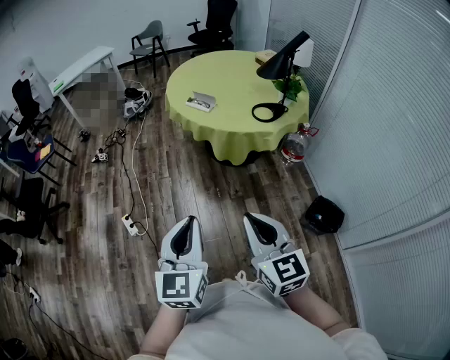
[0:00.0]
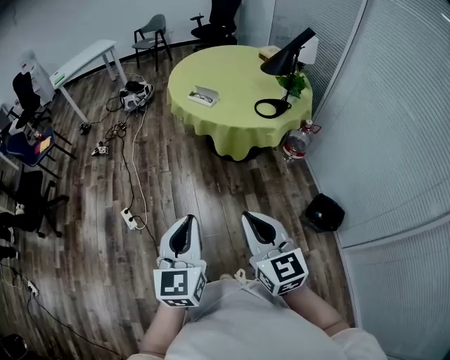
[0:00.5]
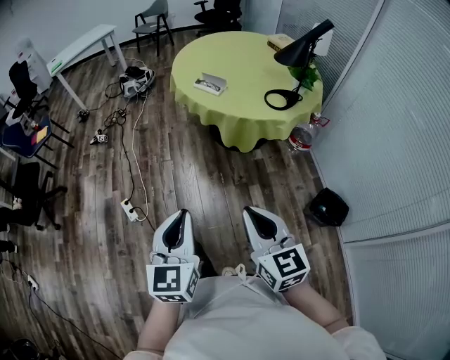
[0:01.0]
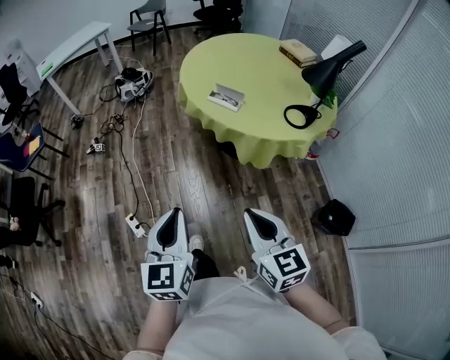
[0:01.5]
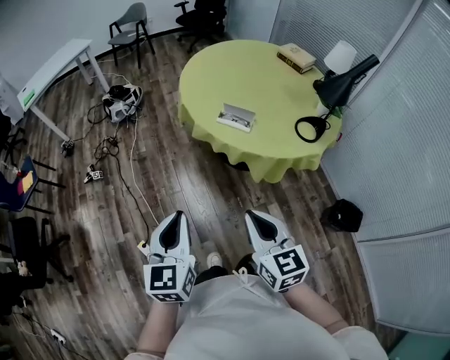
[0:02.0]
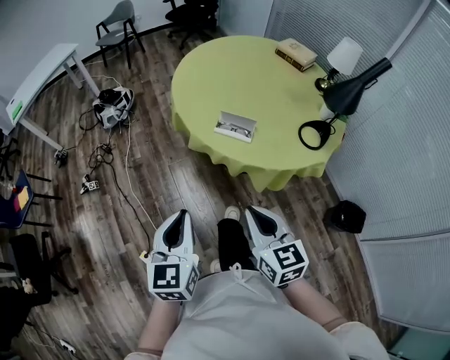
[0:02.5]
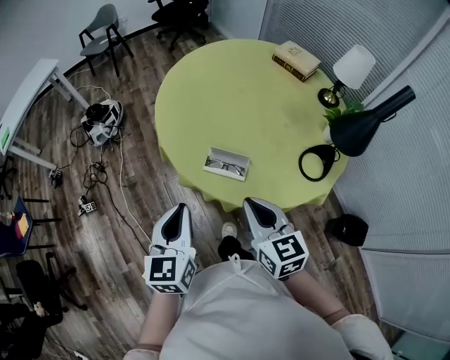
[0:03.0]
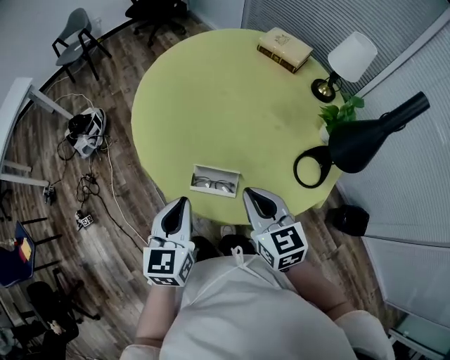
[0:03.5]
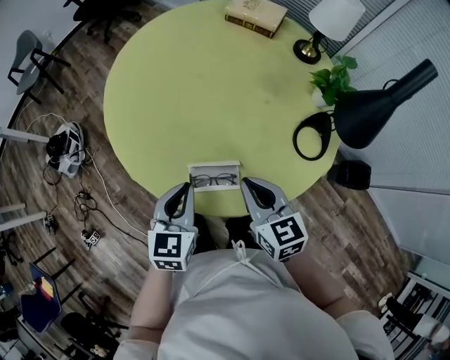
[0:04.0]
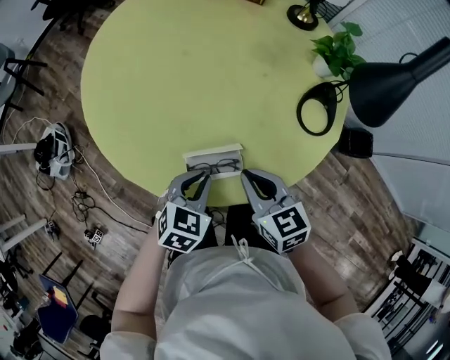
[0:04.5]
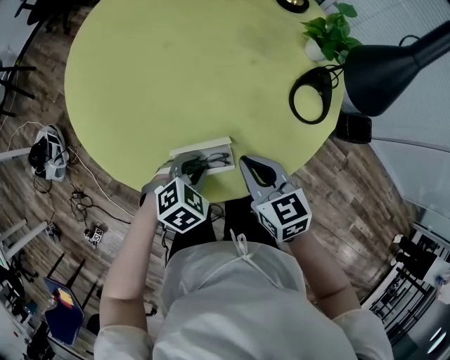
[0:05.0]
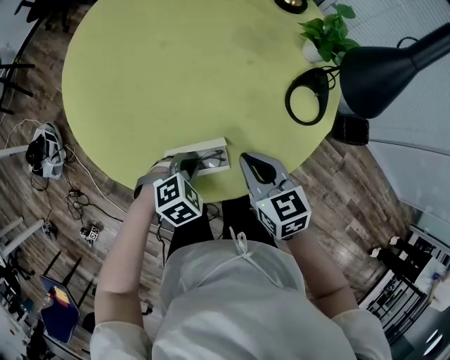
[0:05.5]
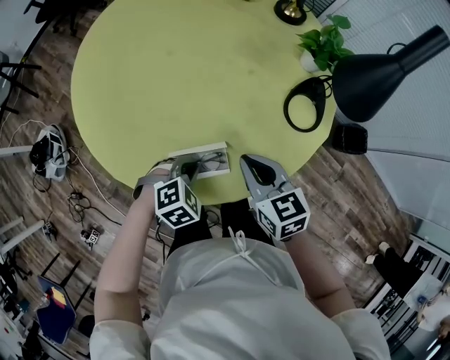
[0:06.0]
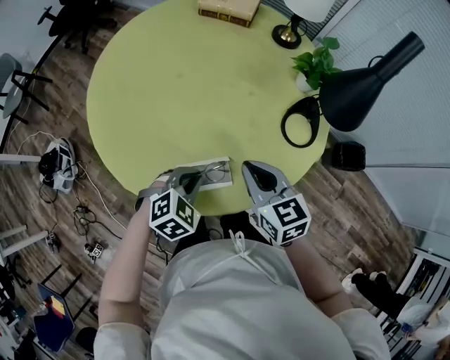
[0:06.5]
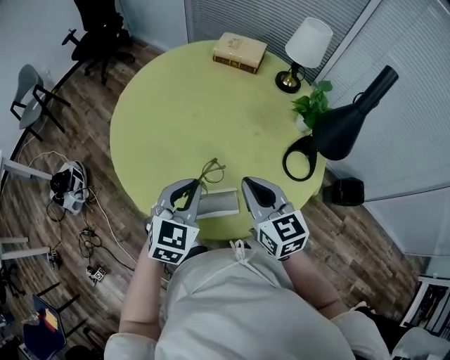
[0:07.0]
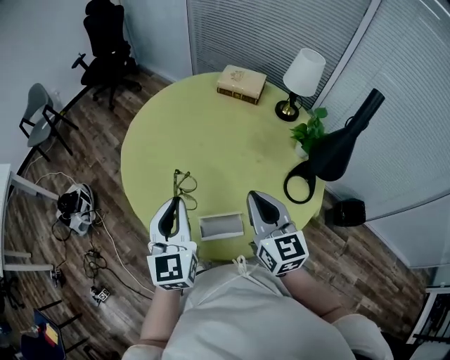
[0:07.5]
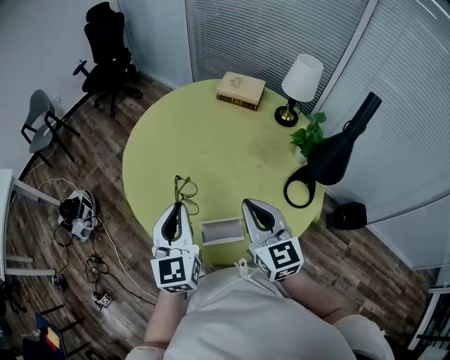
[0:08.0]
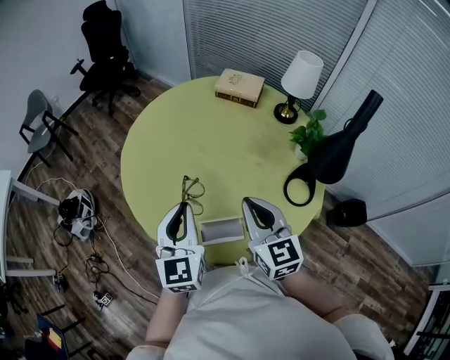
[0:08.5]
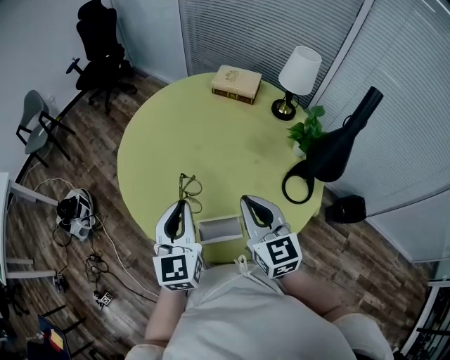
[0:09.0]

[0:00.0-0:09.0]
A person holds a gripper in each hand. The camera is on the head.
0:00.0 to 0:02.0: The two grippers travel together, forward and to the left, roughly 50 cm.
0:02.0 to 0:04.5: The two grippers travel together, about 50 cm. The right gripper turns by roughly 30 degrees; the left gripper angles its fingers downward, by some 30 degrees.
0:04.5 to 0:07.0: Both grippers move upward, approximately 15 cm. The left gripper turns by approximately 20 degrees.
0:07.0 to 0:09.0: Both grippers travel together upward, about 5 cm. The left gripper turns by some 30 degrees.

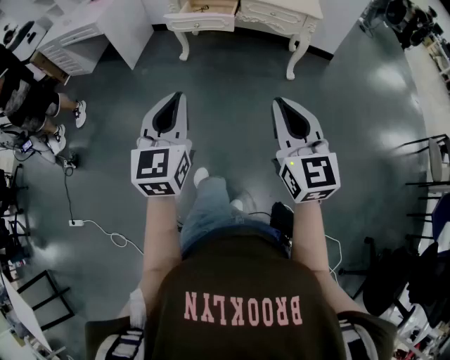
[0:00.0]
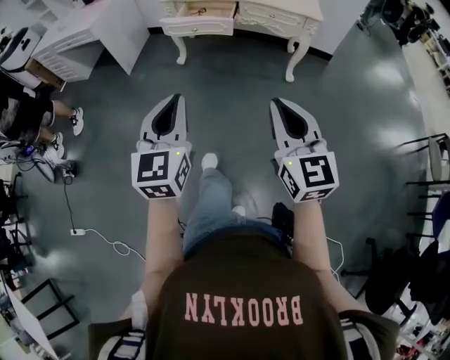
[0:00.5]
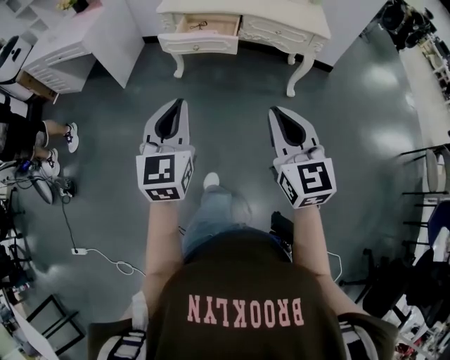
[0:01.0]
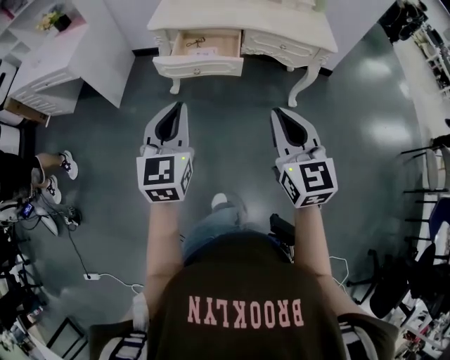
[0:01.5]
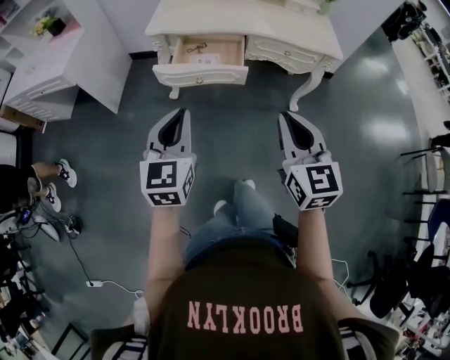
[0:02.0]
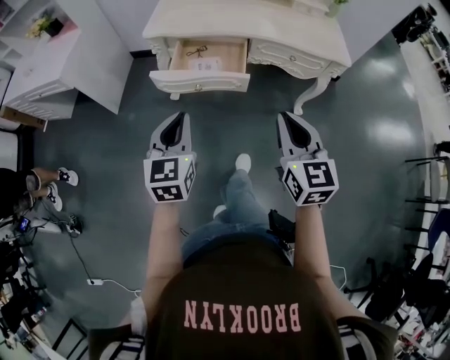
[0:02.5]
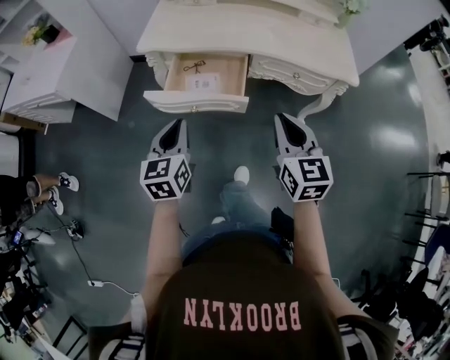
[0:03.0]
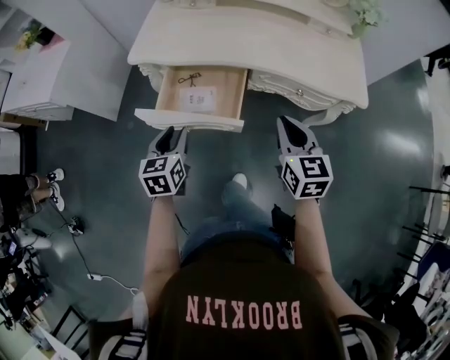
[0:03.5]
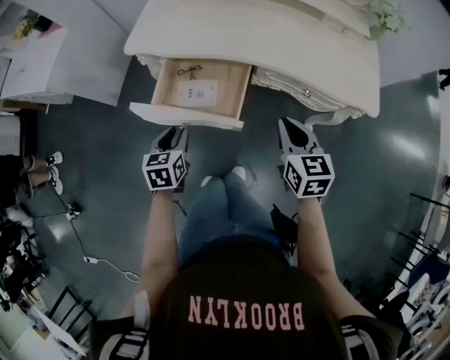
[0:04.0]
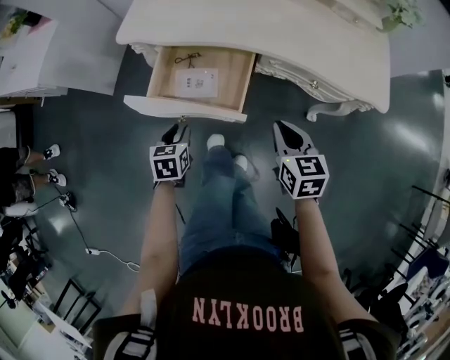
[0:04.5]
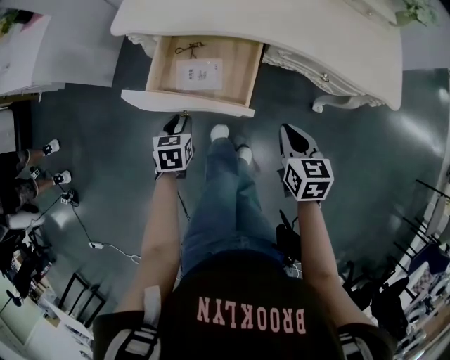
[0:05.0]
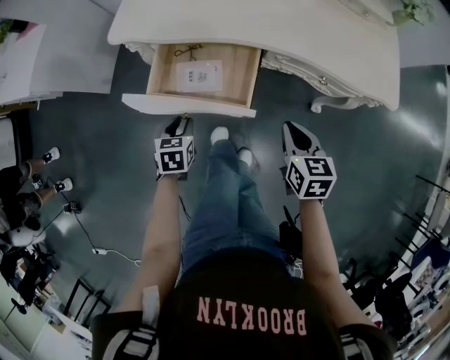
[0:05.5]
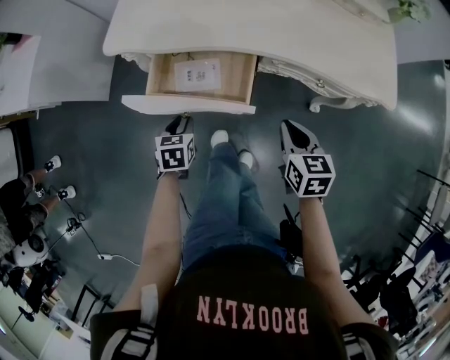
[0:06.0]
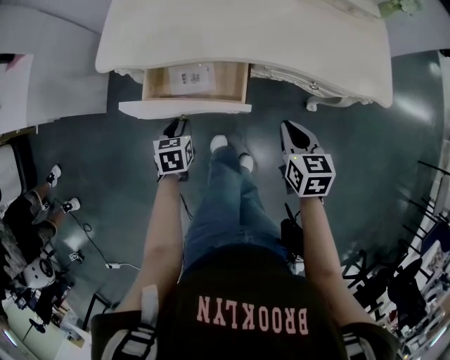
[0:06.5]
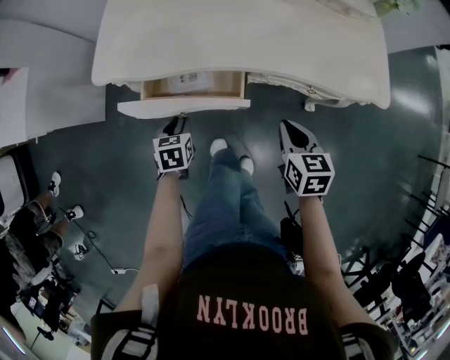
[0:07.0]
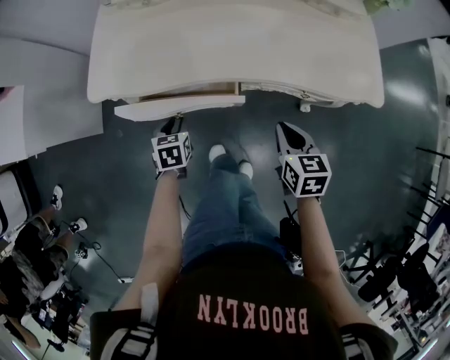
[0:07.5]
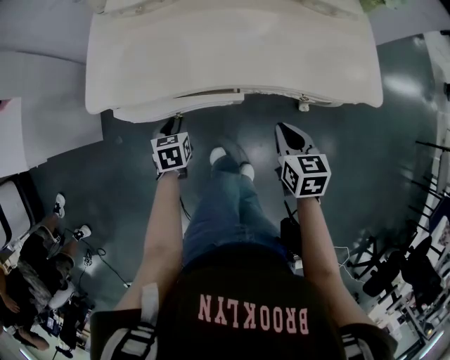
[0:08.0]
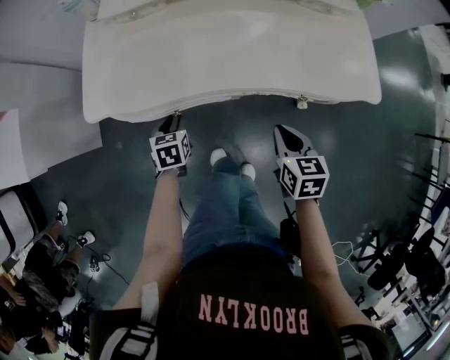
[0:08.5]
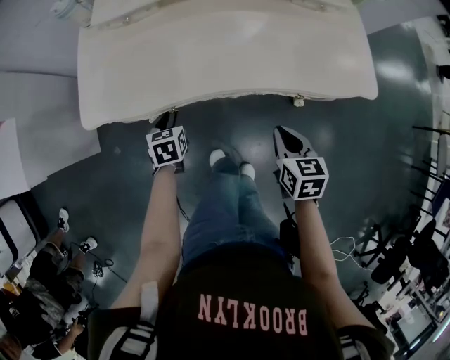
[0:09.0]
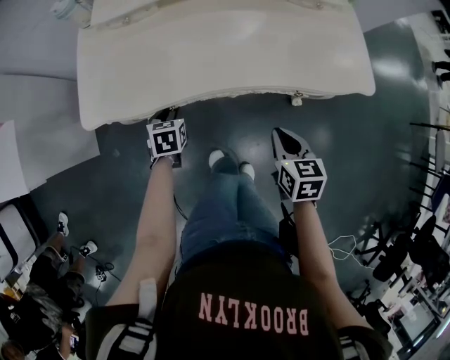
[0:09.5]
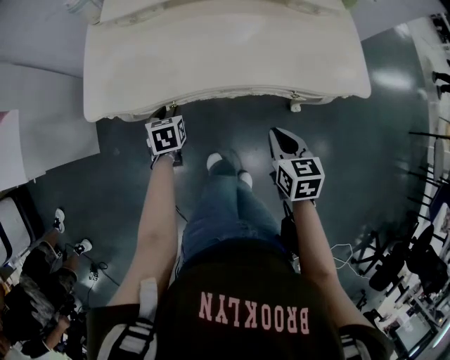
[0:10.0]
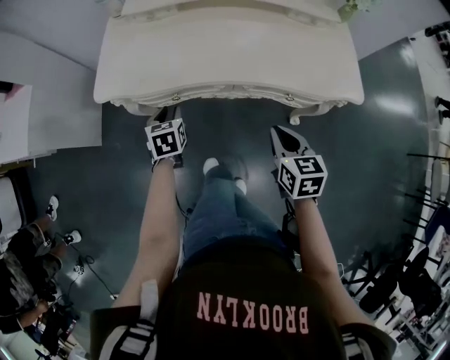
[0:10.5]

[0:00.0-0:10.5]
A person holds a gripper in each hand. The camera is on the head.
0:00.0 to 0:02.0: The pair of grippers is taken forward, approximately 40 cm.
0:02.0 to 0:04.0: Both grippers travel together forward and downward, approximately 35 cm. The left gripper tips its fingers downward by roughly 30 degrees, and opens up. The right gripper swivels about 20 degrees.
0:04.0 to 0:06.5: The right gripper heads downward, covering some 10 cm; the left gripper moves downward and forward, roughly 15 cm.
0:06.5 to 0:08.5: The right gripper is displaced forward by approximately 5 cm; the left gripper heads forward, covering about 15 cm.
0:08.5 to 0:10.5: Both grippers move upward, roughly 5 cm.

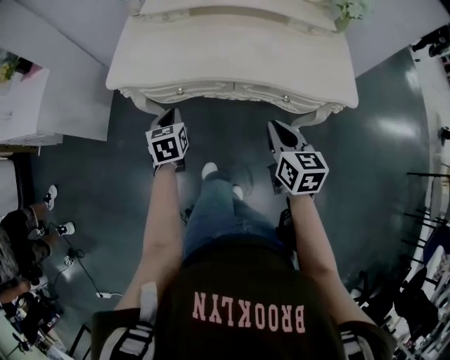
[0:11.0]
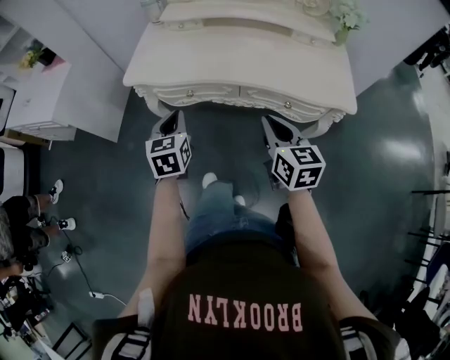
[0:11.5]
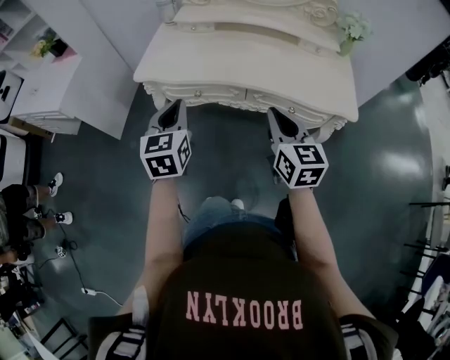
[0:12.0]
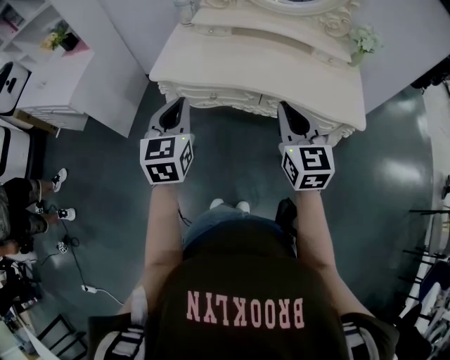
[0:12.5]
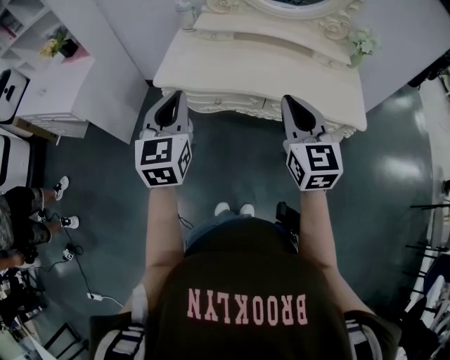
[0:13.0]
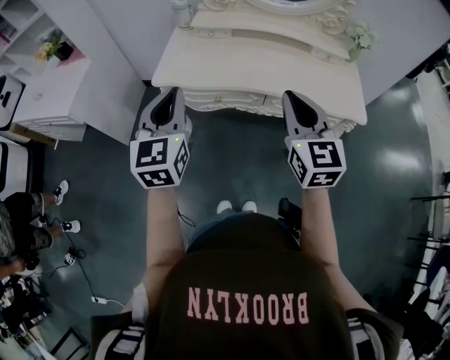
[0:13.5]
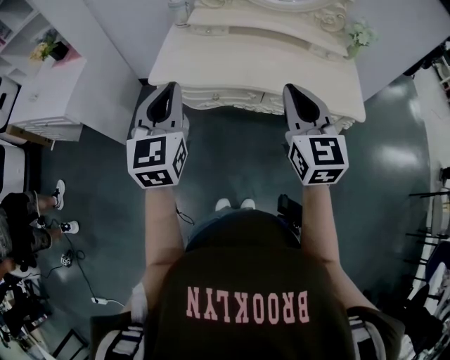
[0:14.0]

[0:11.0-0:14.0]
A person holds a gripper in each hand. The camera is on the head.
0:11.0 to 0:12.5: The right gripper shifts about 15 cm upward and to the left, and changes its angle by about 30 degrees, while the left gripper goes some 25 cm upward and backward, and rotates some 30 degrees.
0:12.5 to 0:14.0: Both grippers travel together upward, roughly 5 cm.

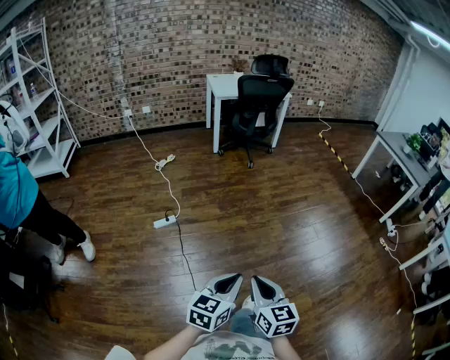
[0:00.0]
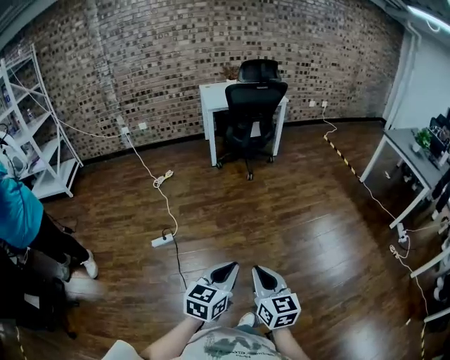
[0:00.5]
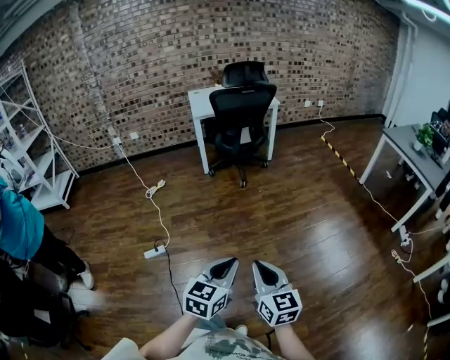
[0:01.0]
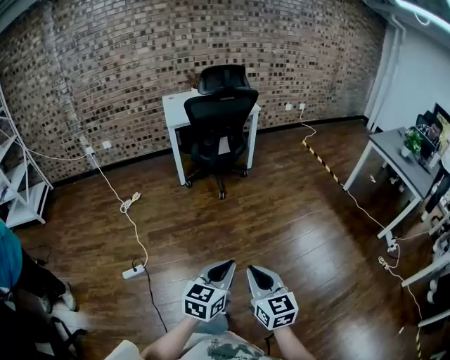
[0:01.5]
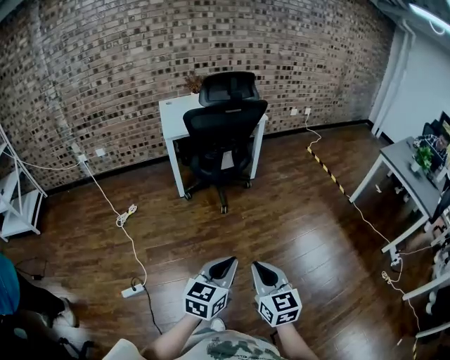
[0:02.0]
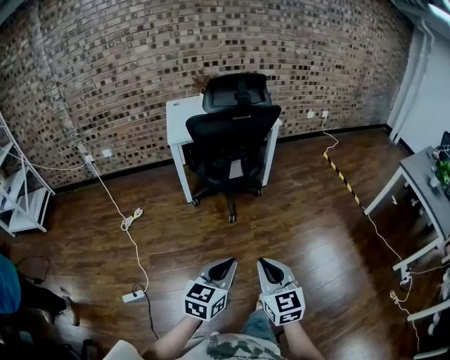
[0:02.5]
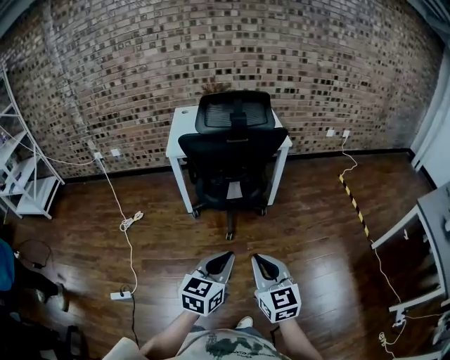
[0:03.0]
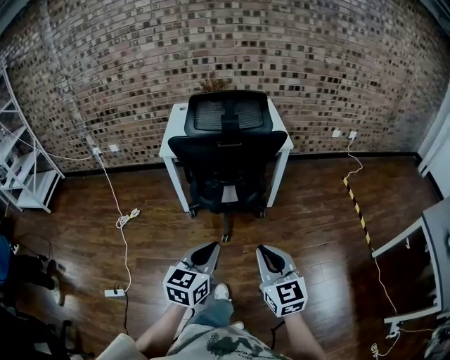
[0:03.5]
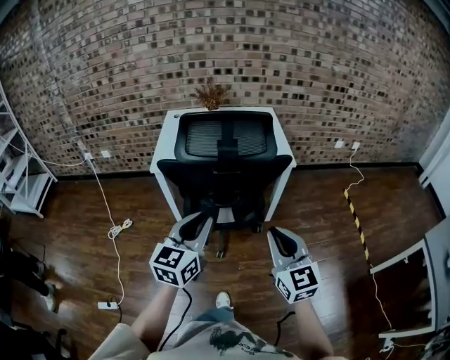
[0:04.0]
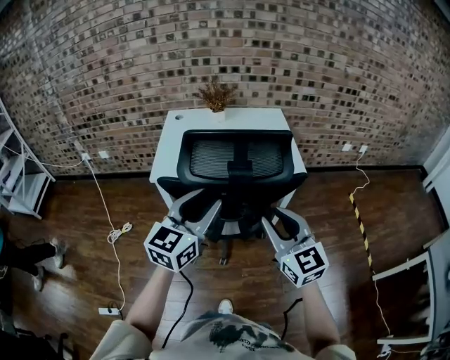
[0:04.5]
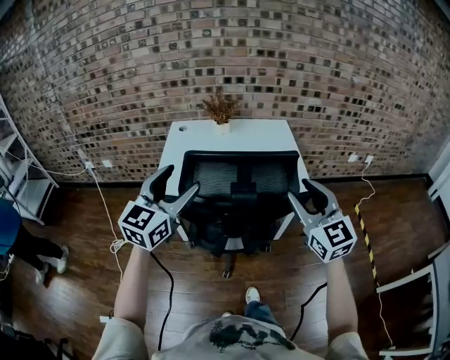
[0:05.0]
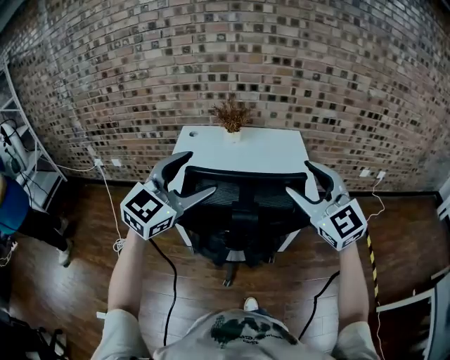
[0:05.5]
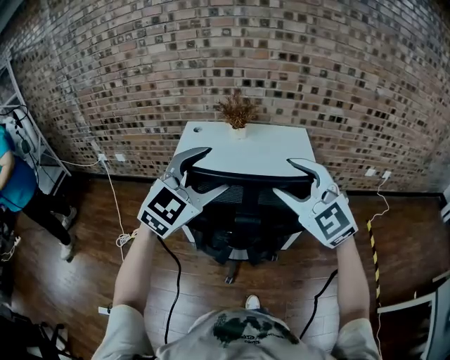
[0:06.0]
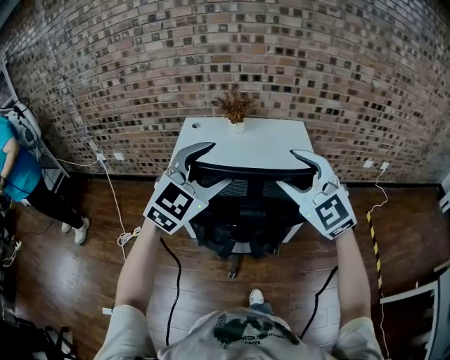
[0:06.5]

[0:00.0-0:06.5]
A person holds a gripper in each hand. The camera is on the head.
0:00.0 to 0:02.0: Both grippers are carried forward, roughly 60 cm.
0:02.0 to 0:04.5: The two grippers travel together, forward, some 70 cm. The left gripper rotates roughly 20 degrees, and opens its fingers; the right gripper changes its angle by some 30 degrees.
0:04.5 to 0:06.5: The grippers both shift forward and upward by roughly 20 cm. The left gripper swivels some 40 degrees, and opens. Meanwhile the right gripper rotates some 40 degrees, and opens up.
